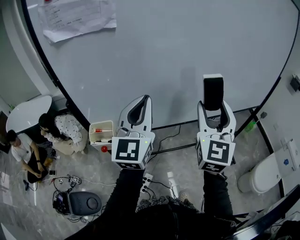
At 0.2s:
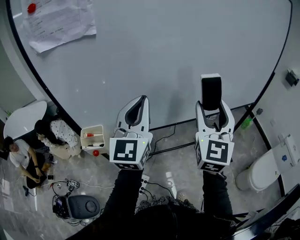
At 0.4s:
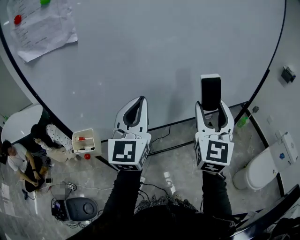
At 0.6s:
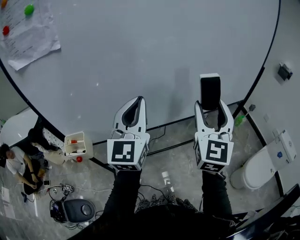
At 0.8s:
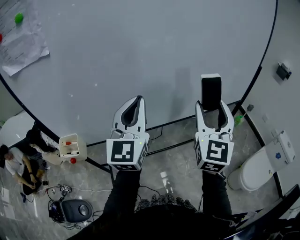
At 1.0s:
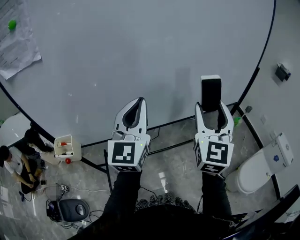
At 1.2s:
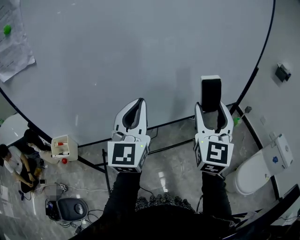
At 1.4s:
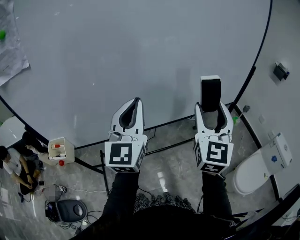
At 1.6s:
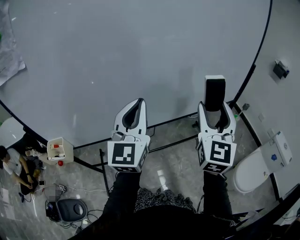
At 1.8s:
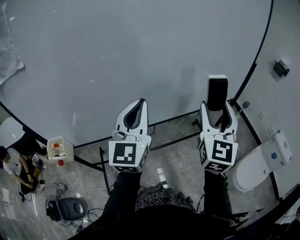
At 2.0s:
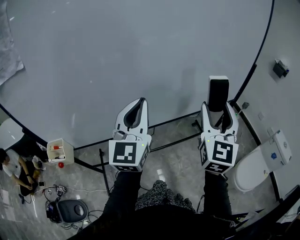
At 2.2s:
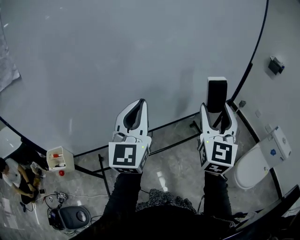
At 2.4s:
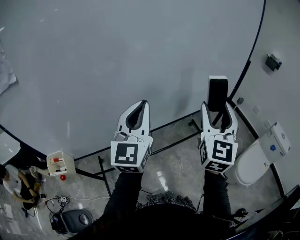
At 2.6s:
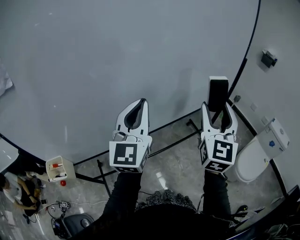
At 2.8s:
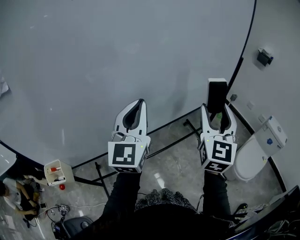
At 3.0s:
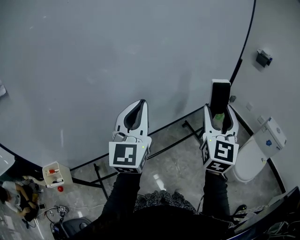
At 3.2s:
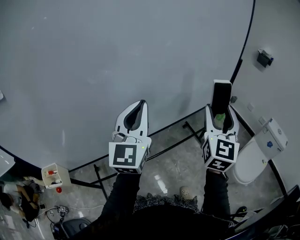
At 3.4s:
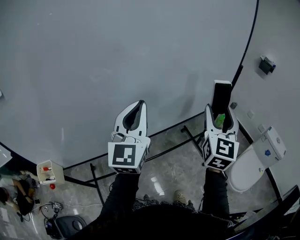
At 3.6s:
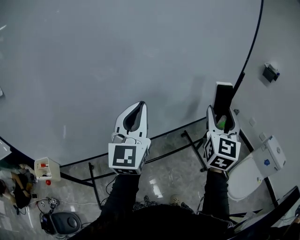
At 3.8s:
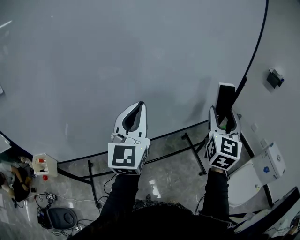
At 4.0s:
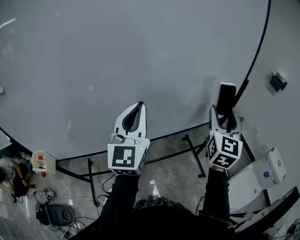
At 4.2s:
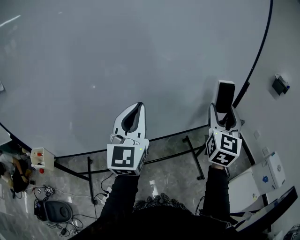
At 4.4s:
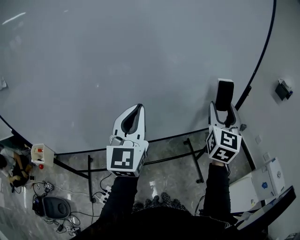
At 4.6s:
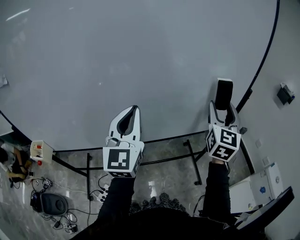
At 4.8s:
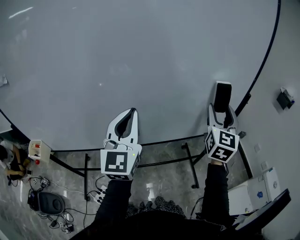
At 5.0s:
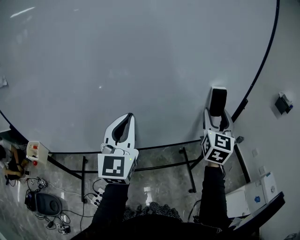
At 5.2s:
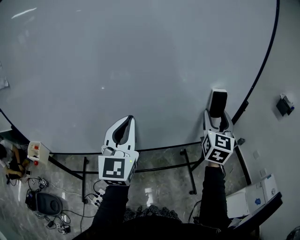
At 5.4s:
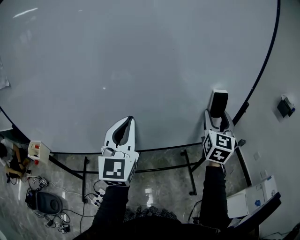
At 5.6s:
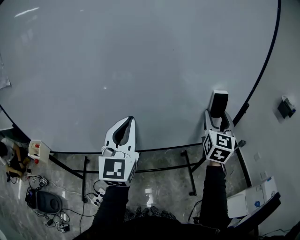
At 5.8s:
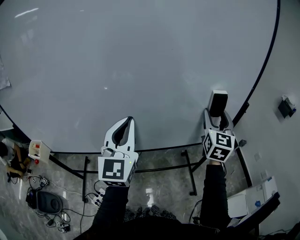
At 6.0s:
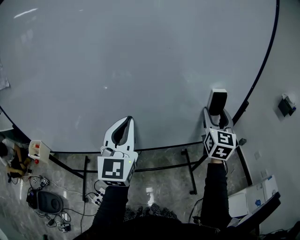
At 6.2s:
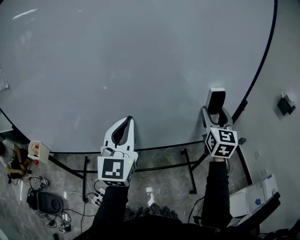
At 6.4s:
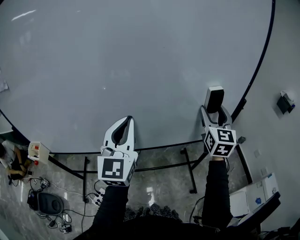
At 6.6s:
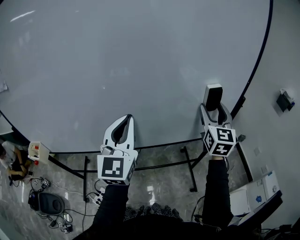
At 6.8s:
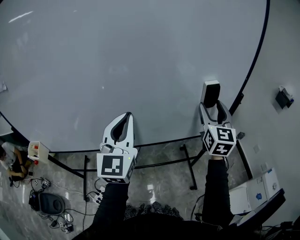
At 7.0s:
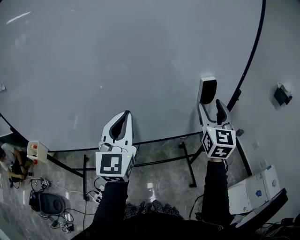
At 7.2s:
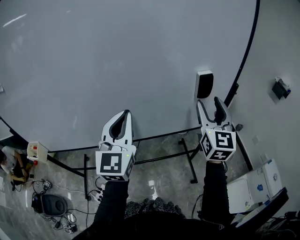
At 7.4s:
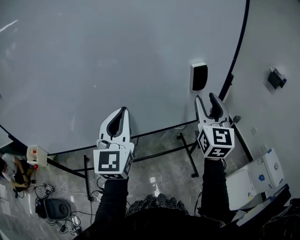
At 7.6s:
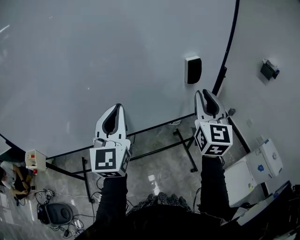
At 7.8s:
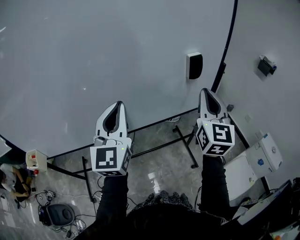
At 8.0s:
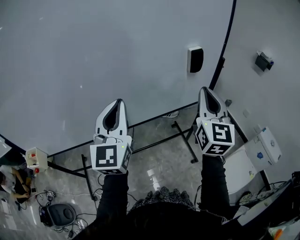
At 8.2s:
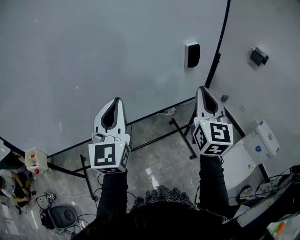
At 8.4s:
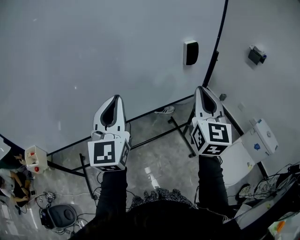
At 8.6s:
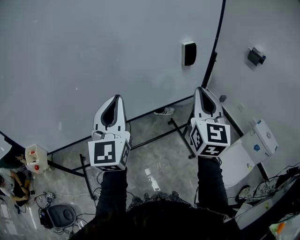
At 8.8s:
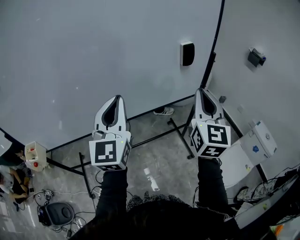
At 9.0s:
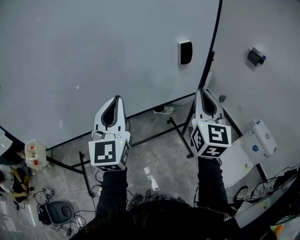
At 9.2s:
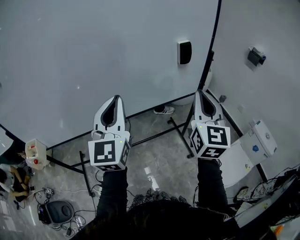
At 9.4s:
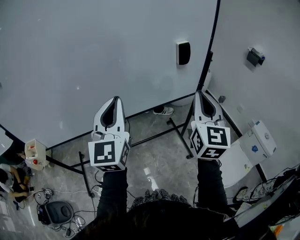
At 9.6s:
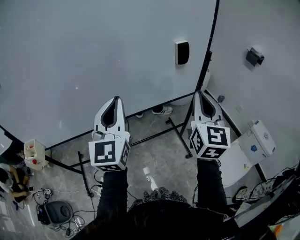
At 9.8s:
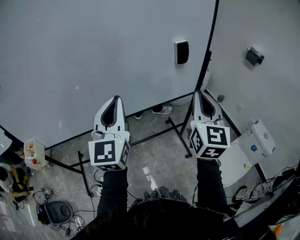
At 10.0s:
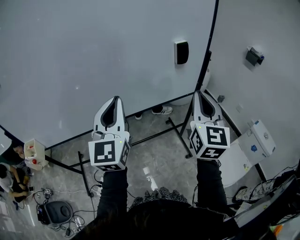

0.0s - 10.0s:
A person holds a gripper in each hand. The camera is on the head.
0.0s - 1.4s: The right gripper shifts approximately 25 cm to the right; the left gripper heads to the right and forward, covering about 25 cm.
1.4s - 2.8s: The grippers stay close to where they were, moving slightly.
2.8s - 4.2s: The left gripper shifts roughly 15 cm to the right and forward. Meanwhile the right gripper moves forward and to the right, approximately 20 cm.
4.2s - 5.8s: The right gripper moves forward, some 10 cm.
5.8s - 7.2s: The right gripper is displaced backward by approximately 5 cm.
7.2s - 8.6s: The left gripper goes approximately 10 cm backward. The right gripper heads backward, covering roughly 15 cm, and closes up.
8.6s - 10.0s: There are only small adjustments of the grippers.

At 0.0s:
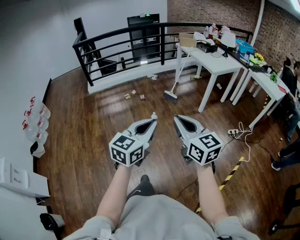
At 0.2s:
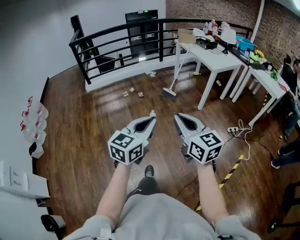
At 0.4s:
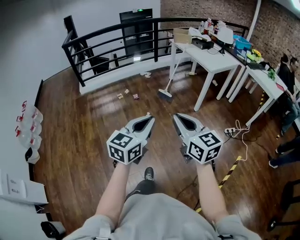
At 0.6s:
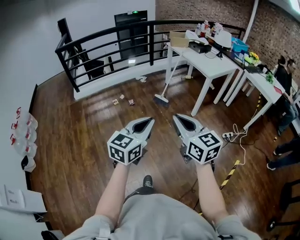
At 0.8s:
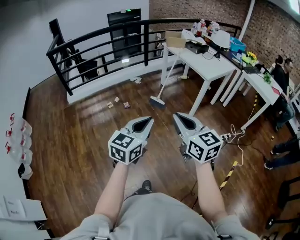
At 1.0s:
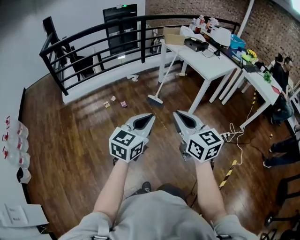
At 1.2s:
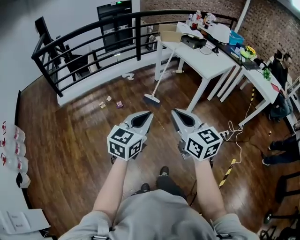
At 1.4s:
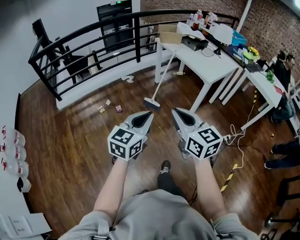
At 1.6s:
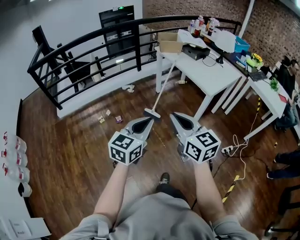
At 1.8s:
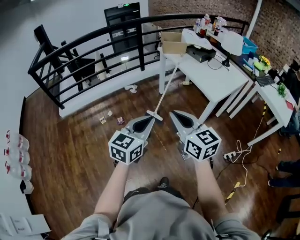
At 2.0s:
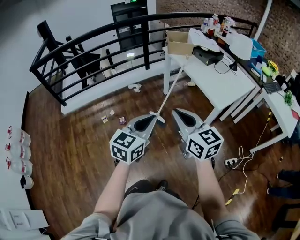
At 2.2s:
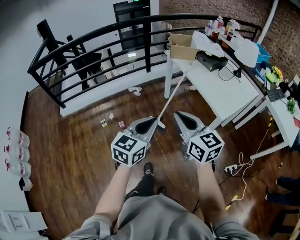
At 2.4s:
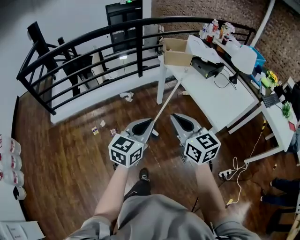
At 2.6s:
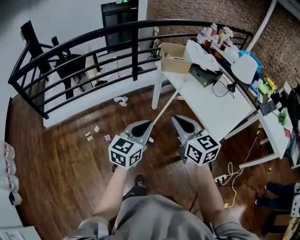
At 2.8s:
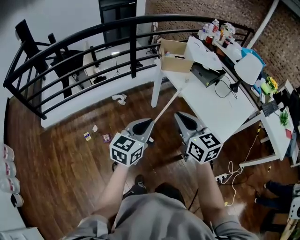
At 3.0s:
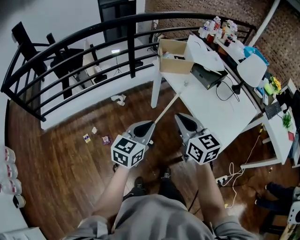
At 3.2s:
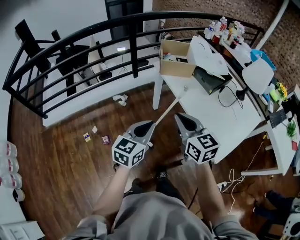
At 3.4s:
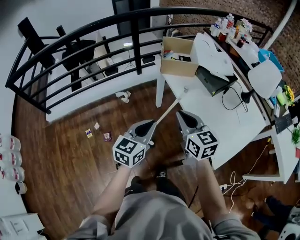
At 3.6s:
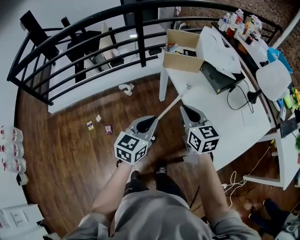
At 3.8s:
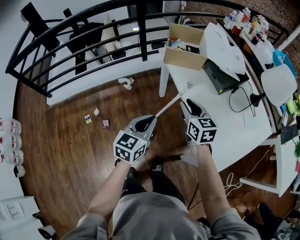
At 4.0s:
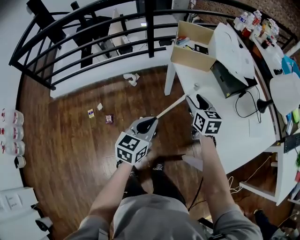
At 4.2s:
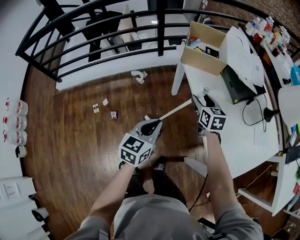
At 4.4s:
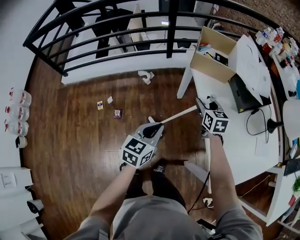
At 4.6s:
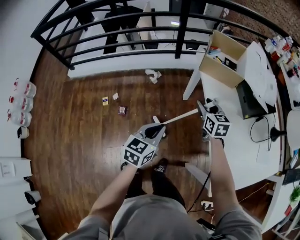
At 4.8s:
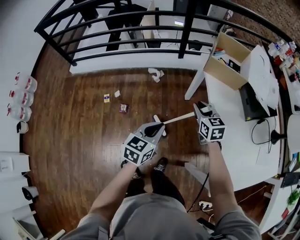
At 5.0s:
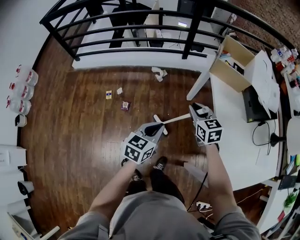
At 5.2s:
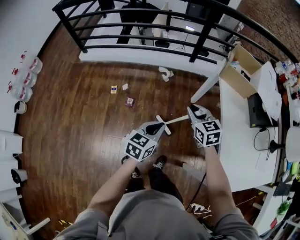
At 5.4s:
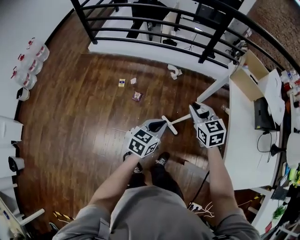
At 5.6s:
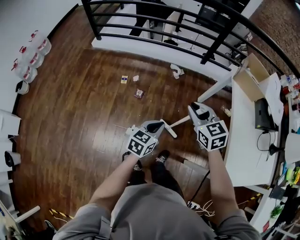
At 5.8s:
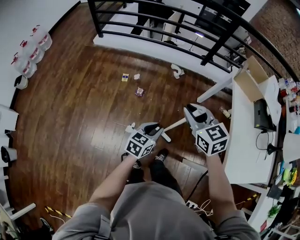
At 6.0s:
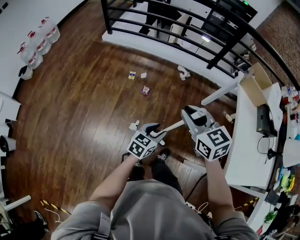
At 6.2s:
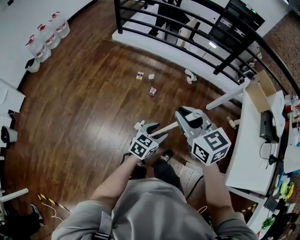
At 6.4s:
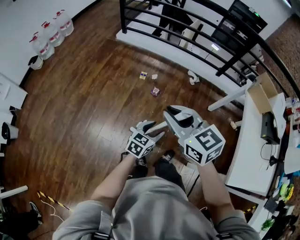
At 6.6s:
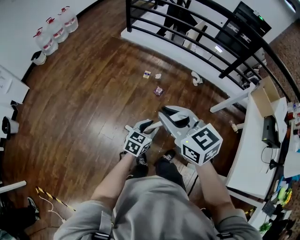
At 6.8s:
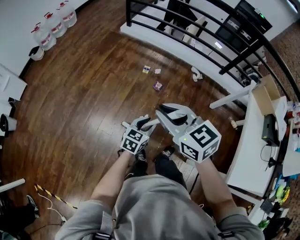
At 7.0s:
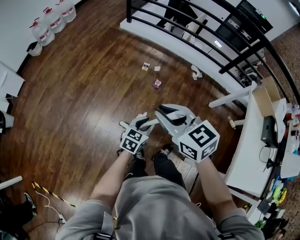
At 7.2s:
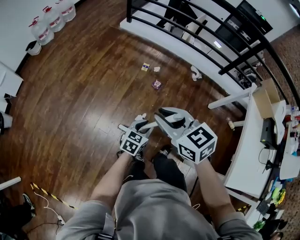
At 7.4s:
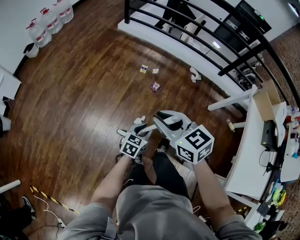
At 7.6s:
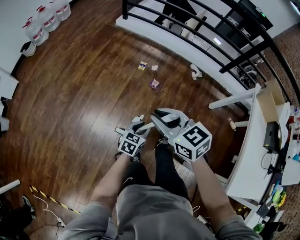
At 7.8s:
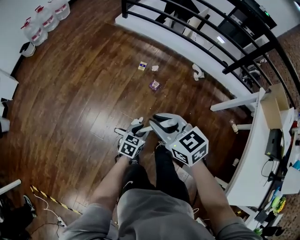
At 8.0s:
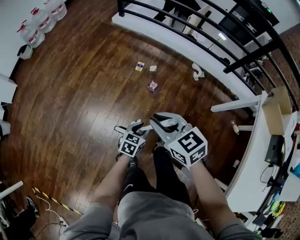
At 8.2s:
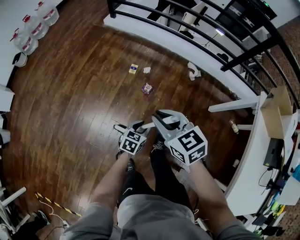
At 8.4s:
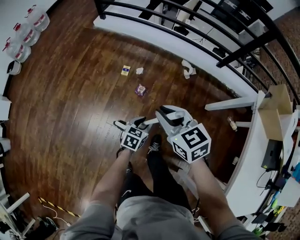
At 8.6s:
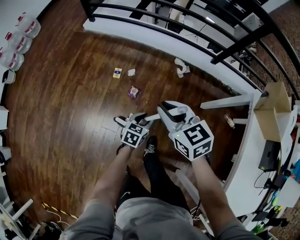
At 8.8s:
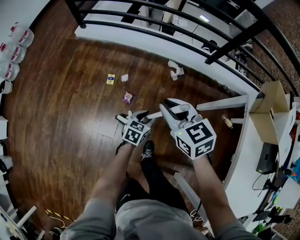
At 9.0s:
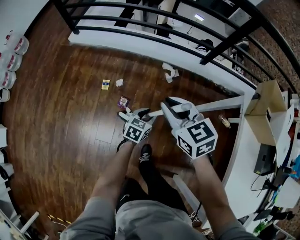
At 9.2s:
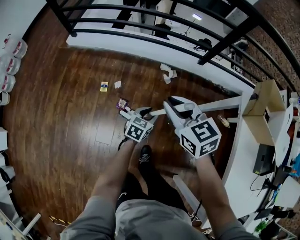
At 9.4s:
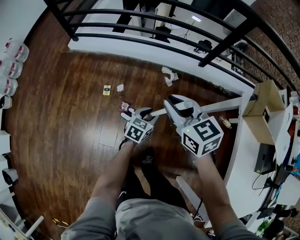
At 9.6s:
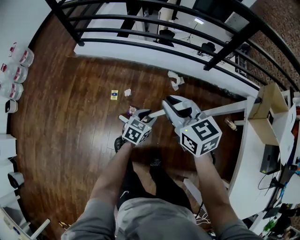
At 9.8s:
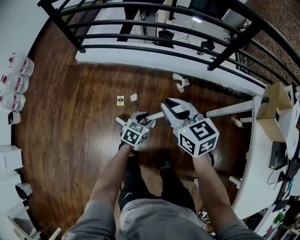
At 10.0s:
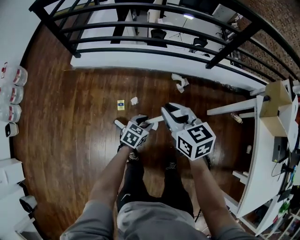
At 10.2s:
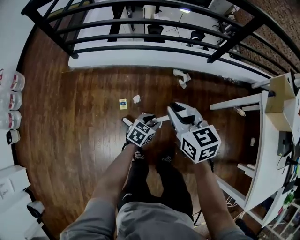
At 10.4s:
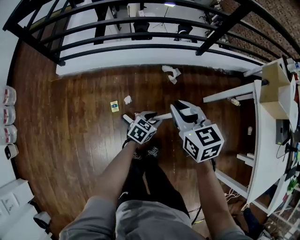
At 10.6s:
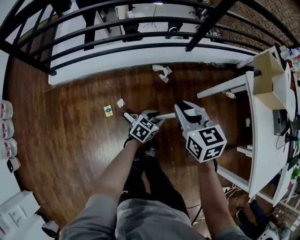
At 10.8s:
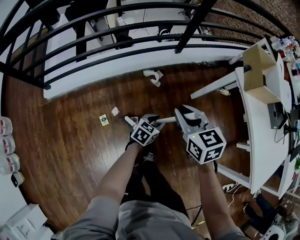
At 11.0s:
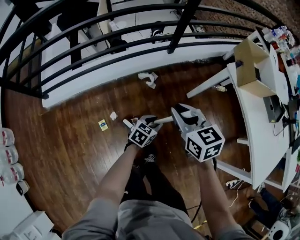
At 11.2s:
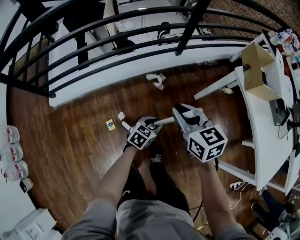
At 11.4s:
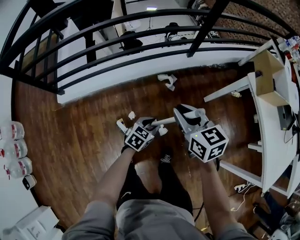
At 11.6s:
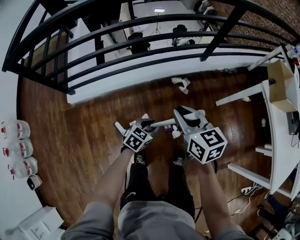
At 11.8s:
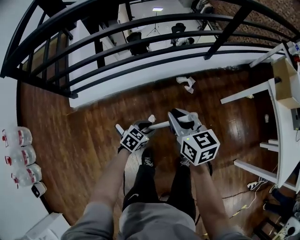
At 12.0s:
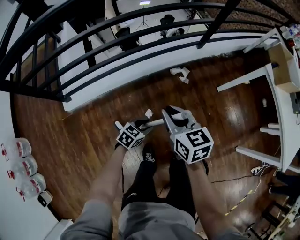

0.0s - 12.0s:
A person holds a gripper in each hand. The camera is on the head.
0.0s - 1.6s: Both grippers are carried forward, approximately 50 cm.
1.6s - 3.0s: The two grippers travel together, forward, roughly 50 cm.
3.0s - 4.4s: The left gripper is displaced downward and forward by about 15 cm, and changes its angle by about 20 degrees, while the right gripper goes some 35 cm forward and downward, and opens up.
4.4s - 6.0s: The left gripper ends up about 30 cm from where it was, and opens up; the right gripper moves approximately 50 cm, turns by about 50 degrees, and closes its fingers.
6.0s - 7.6s: The grippers both shift to the left and downward by about 20 cm. The right gripper swivels some 20 degrees.
7.6s - 9.0s: The pair of grippers is taken forward and to the right, approximately 50 cm. The right gripper turns by about 20 degrees.
9.0s - 10.4s: The left gripper ends up roughly 15 cm from where it was, and turns by roughly 30 degrees. Meanwhile the right gripper shifts by roughly 15 cm, and turns by some 30 degrees.
10.4s - 12.0s: The grippers both shift to the left by roughly 20 cm. The left gripper turns by roughly 20 degrees. Meanwhile the right gripper swivels some 20 degrees.

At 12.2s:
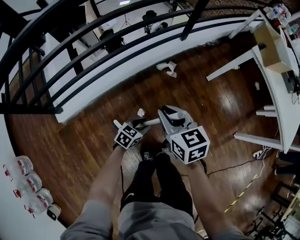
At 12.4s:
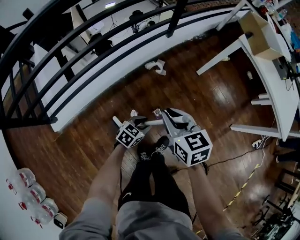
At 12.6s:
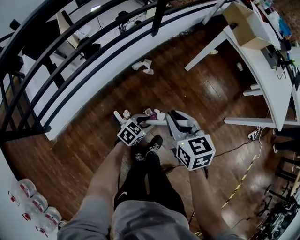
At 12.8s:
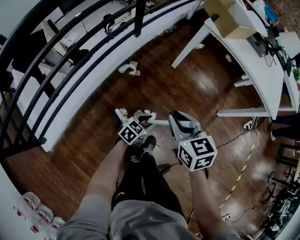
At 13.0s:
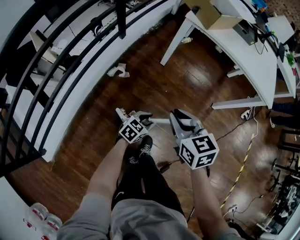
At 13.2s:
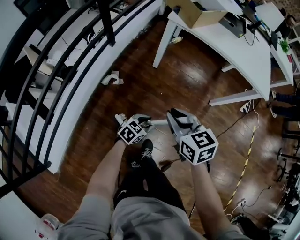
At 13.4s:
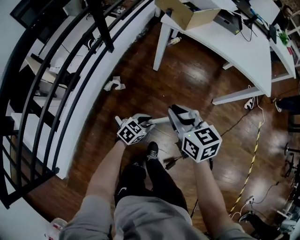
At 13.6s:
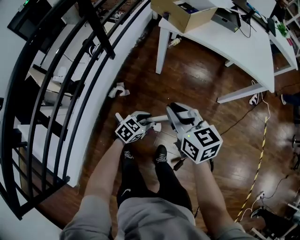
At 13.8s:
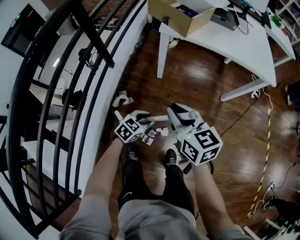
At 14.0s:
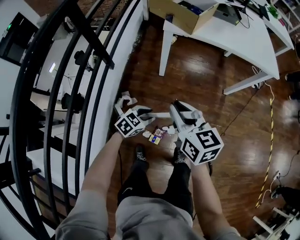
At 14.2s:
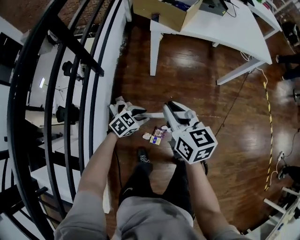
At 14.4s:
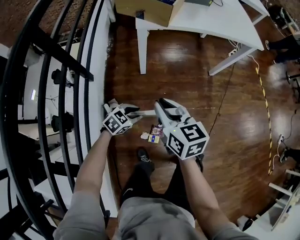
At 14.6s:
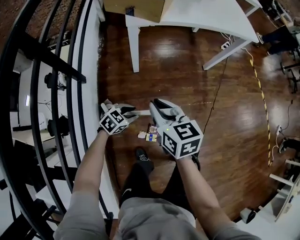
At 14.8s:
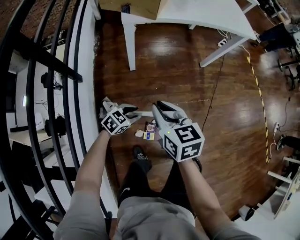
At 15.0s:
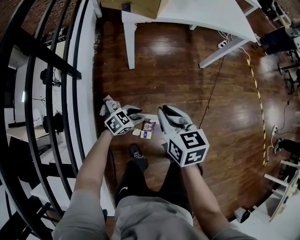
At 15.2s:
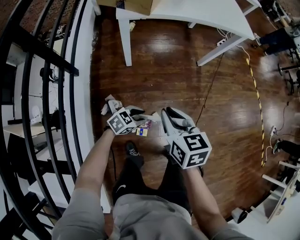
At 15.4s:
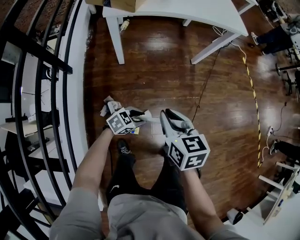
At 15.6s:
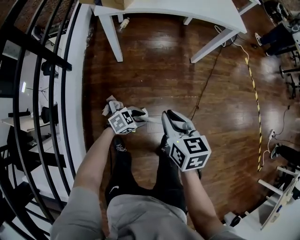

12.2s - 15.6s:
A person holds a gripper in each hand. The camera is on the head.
12.2s - 13.8s: The right gripper ends up approximately 35 cm from where it was, and turns by some 50 degrees; the left gripper changes place by some 35 cm, and turns by approximately 50 degrees.
13.8s - 15.6s: The left gripper changes place by some 15 cm, and changes its angle by some 40 degrees, while the right gripper moves roughly 20 cm, and changes its angle by about 30 degrees.
